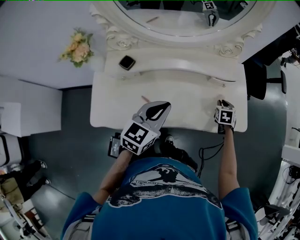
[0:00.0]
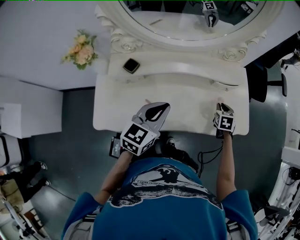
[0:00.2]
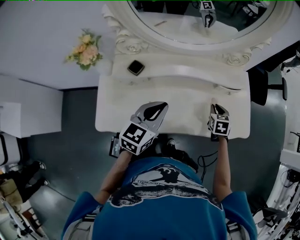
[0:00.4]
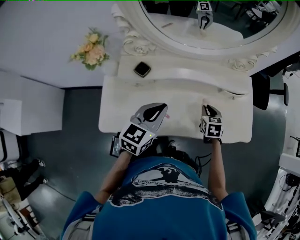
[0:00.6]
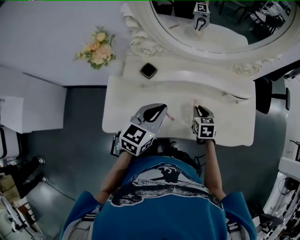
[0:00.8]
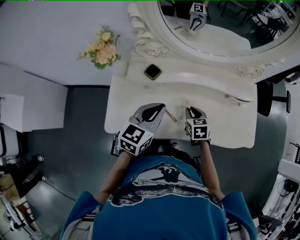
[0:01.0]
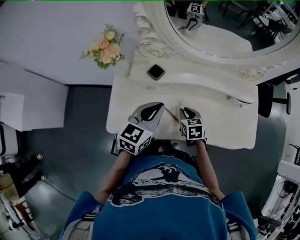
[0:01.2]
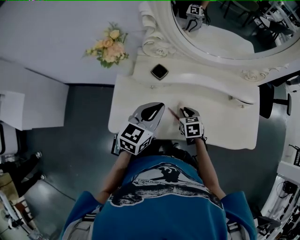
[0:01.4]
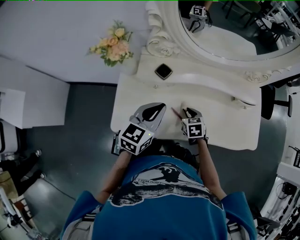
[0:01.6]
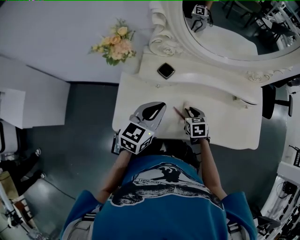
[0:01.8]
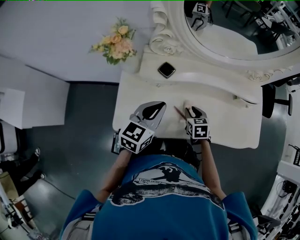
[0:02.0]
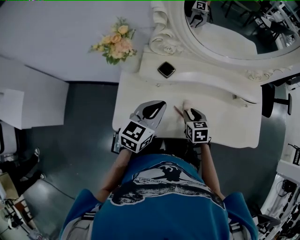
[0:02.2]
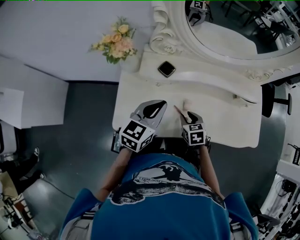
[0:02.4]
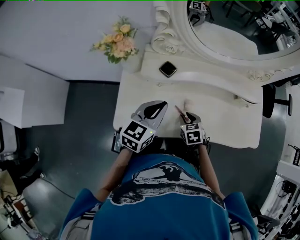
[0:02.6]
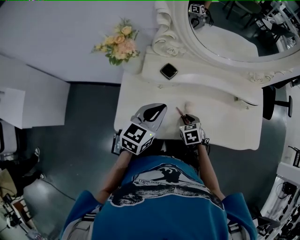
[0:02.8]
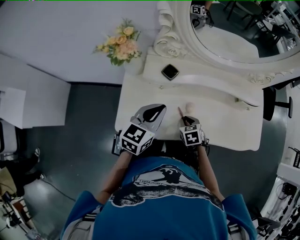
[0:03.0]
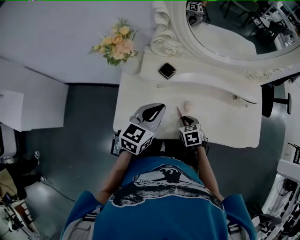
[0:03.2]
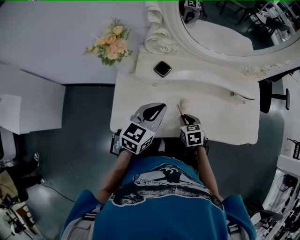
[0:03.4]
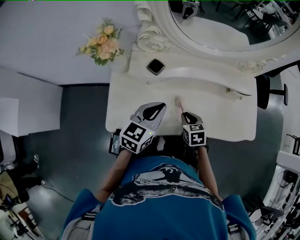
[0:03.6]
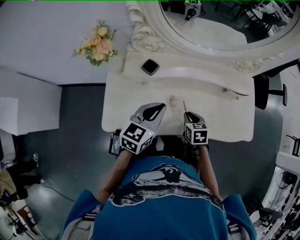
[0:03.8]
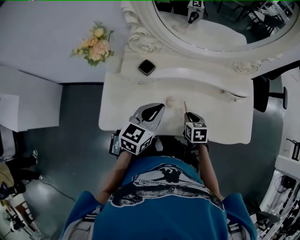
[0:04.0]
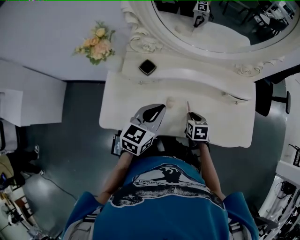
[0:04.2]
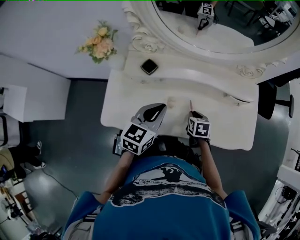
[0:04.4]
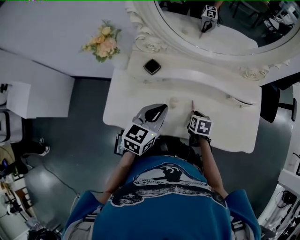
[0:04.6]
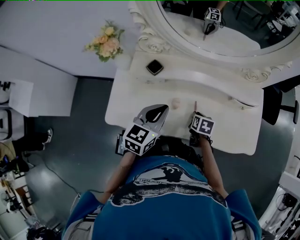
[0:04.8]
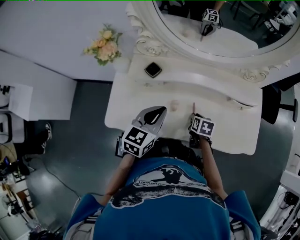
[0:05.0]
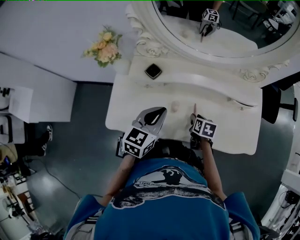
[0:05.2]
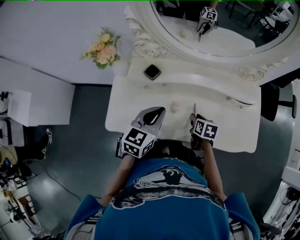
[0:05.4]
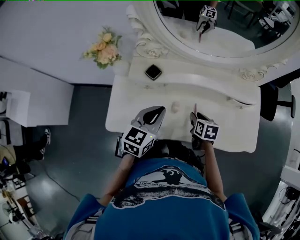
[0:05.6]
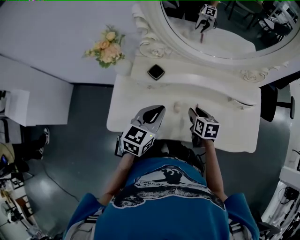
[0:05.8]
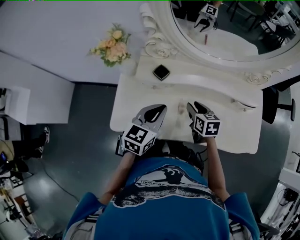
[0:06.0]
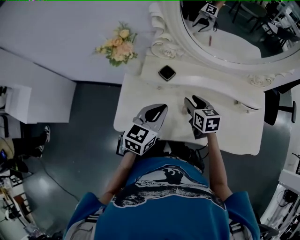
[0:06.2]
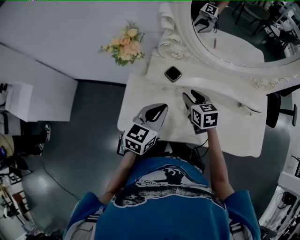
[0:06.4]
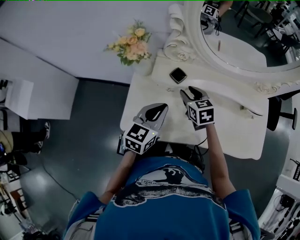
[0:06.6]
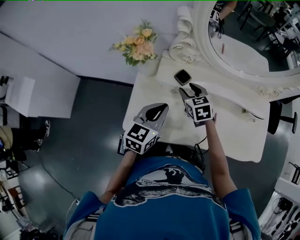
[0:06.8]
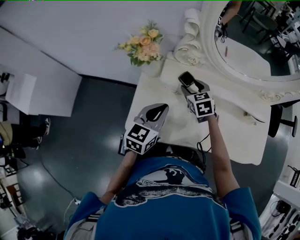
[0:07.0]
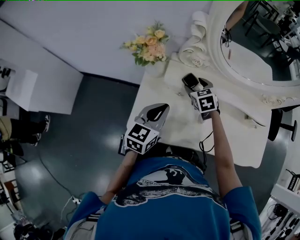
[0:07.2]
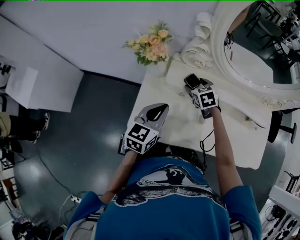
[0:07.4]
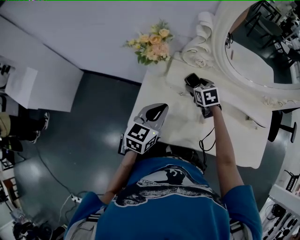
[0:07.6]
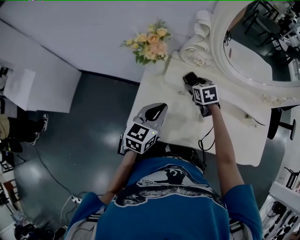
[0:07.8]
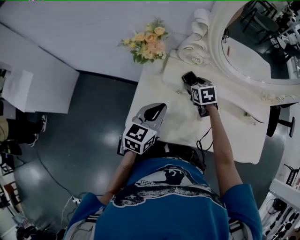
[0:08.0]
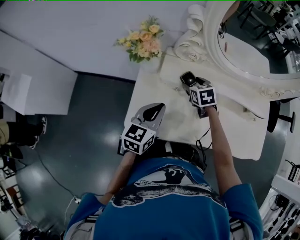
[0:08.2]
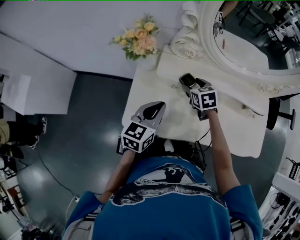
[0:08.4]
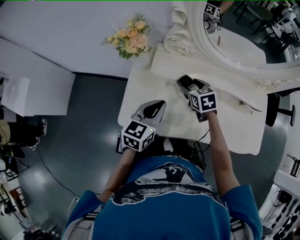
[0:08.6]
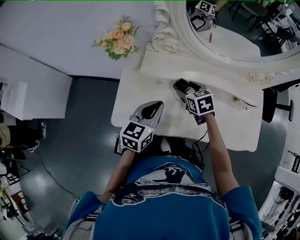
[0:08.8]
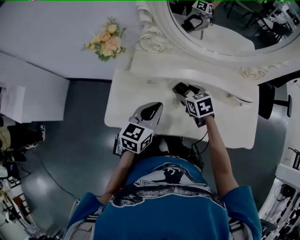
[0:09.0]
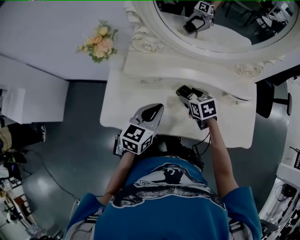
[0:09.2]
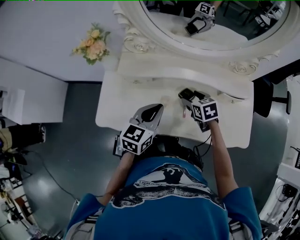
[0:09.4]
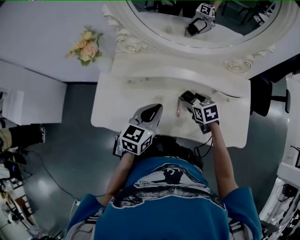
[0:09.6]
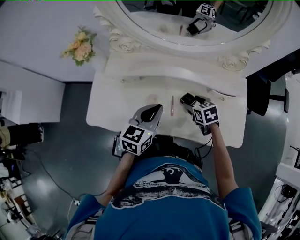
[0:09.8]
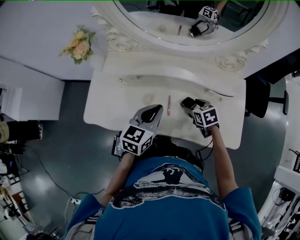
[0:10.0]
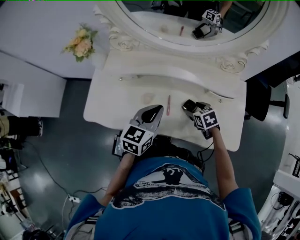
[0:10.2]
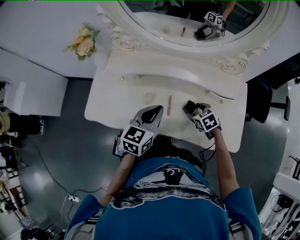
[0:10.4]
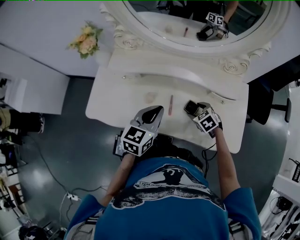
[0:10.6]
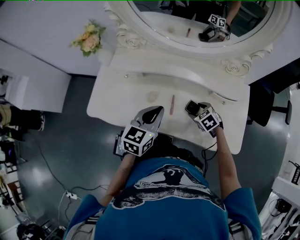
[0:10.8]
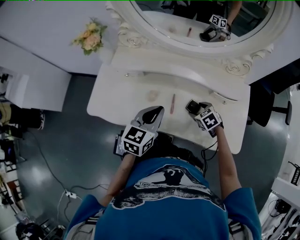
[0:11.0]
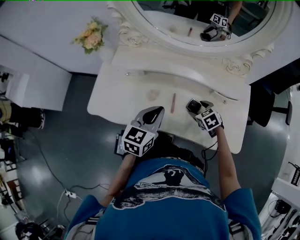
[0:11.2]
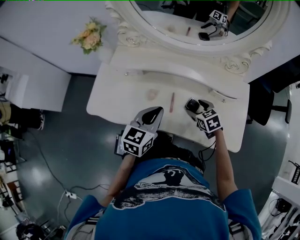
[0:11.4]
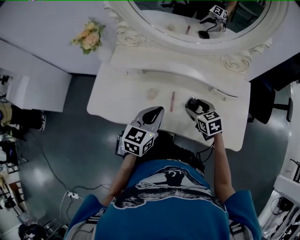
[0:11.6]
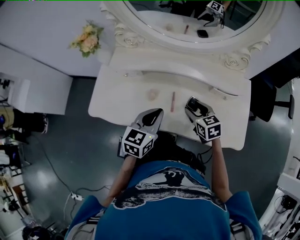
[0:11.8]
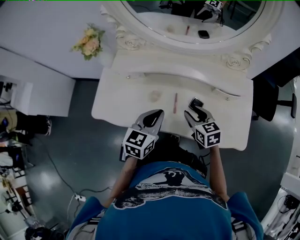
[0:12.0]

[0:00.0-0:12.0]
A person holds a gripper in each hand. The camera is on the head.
0:00.0 to 0:01.6: The left gripper heads to the left, covering about 20 cm. Meanwhile the right gripper goes roughly 35 cm to the left, and changes its angle by some 30 degrees.
0:01.6 to 0:03.0: The right gripper ends up roughly 5 cm from where it was.
0:03.0 to 0:04.4: Both grippers move to the right, roughly 10 cm. The right gripper turns by about 20 degrees.
0:04.4 to 0:06.0: The left gripper goes some 5 cm to the left. The right gripper is displaced to the left and upward by about 15 cm.
0:06.0 to 0:07.6: The left gripper travels to the left by approximately 15 cm; the right gripper shifts approximately 20 cm to the left and forward, rotates some 30 degrees, and opens up.
0:07.6 to 0:09.0: The left gripper travels to the right by about 15 cm, while the right gripper shifts about 15 cm to the right and backward.
0:09.0 to 0:10.4: The right gripper travels to the right, downward and backward by about 25 cm. The left gripper heads to the right, covering approximately 15 cm.
0:10.4 to 0:12.0: The right gripper moves upward and to the left, approximately 10 cm, turns by roughly 30 degrees, and closes its fingers.

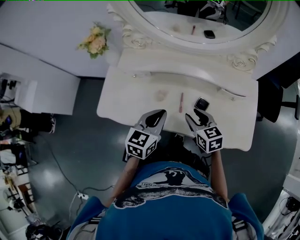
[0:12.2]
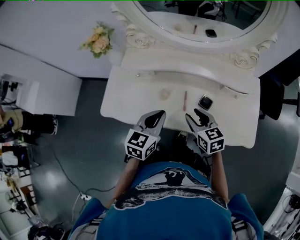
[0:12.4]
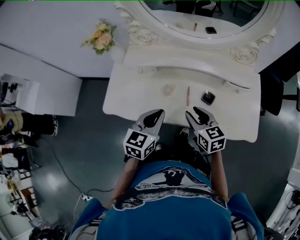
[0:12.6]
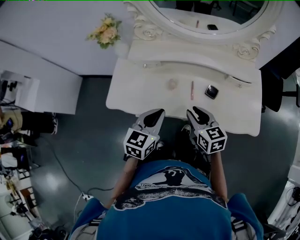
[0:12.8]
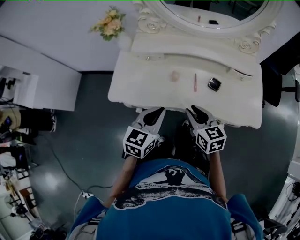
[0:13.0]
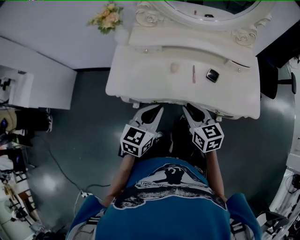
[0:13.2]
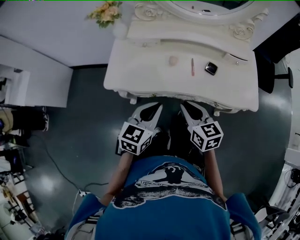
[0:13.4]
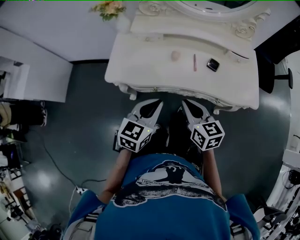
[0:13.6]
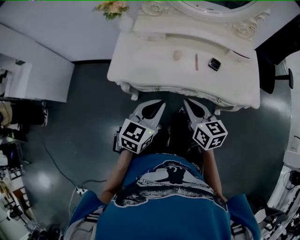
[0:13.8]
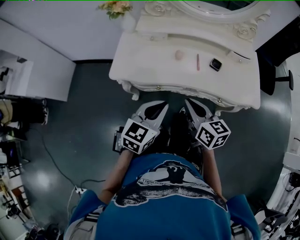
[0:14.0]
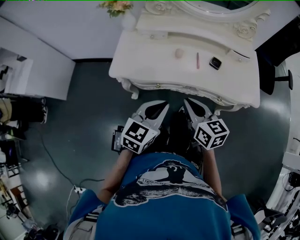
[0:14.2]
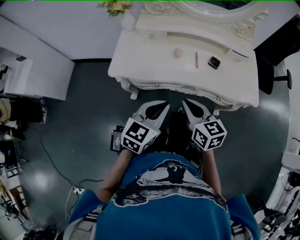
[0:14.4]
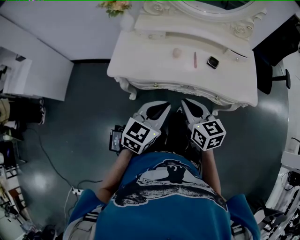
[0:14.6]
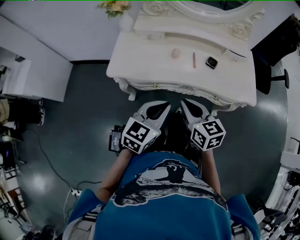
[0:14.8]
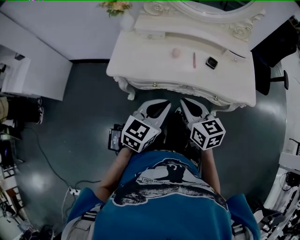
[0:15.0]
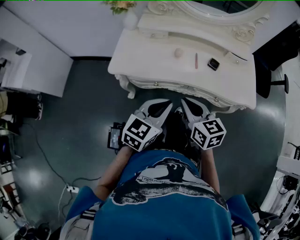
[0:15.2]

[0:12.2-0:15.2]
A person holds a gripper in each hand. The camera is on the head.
0:12.2 to 0:13.8: Both grippers move backward and to the left, about 25 cm. The right gripper closes its fingers.
0:13.8 to 0:15.2: The grippers move only a little.

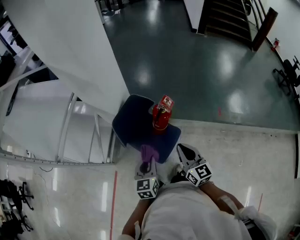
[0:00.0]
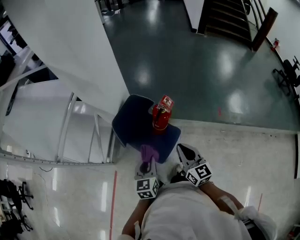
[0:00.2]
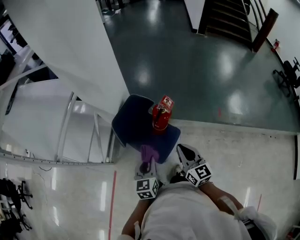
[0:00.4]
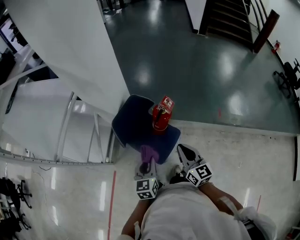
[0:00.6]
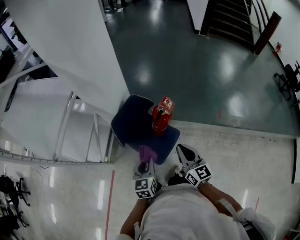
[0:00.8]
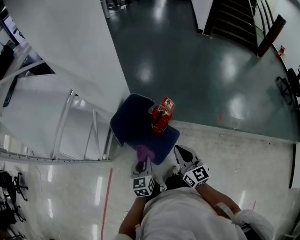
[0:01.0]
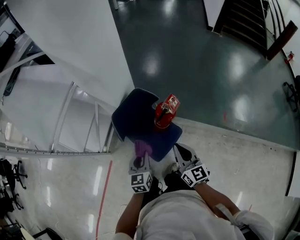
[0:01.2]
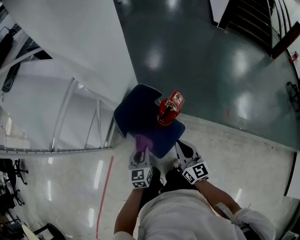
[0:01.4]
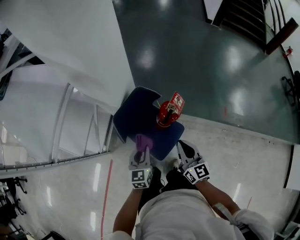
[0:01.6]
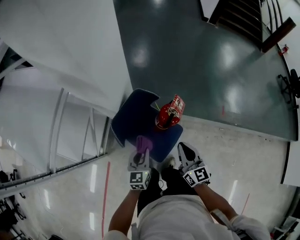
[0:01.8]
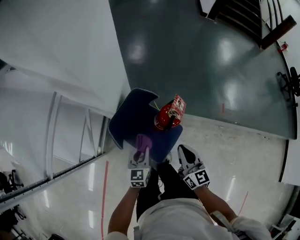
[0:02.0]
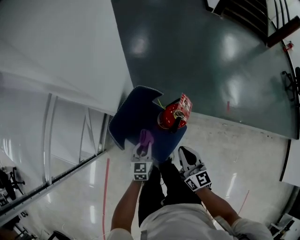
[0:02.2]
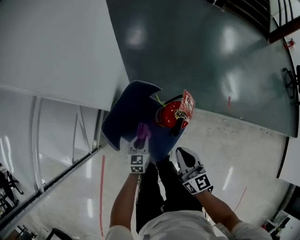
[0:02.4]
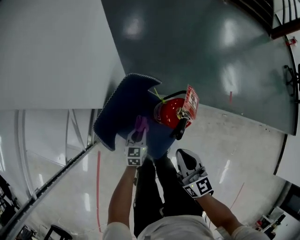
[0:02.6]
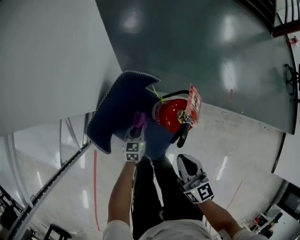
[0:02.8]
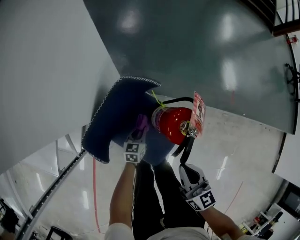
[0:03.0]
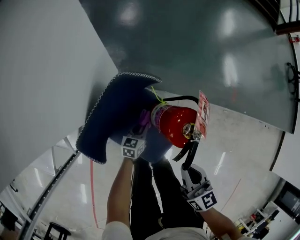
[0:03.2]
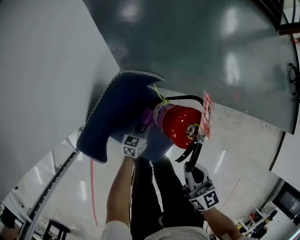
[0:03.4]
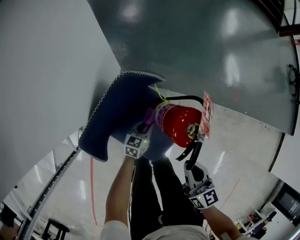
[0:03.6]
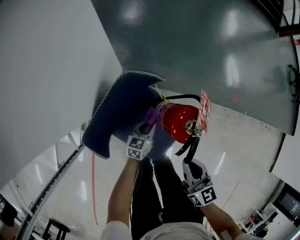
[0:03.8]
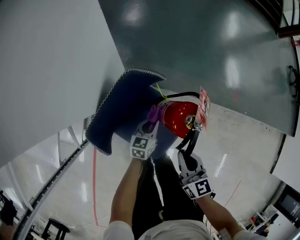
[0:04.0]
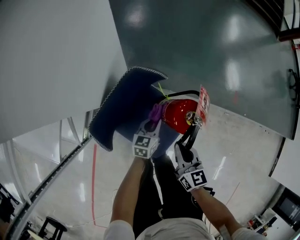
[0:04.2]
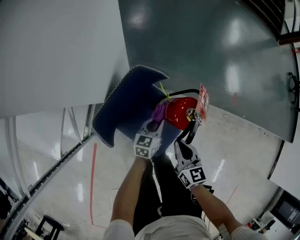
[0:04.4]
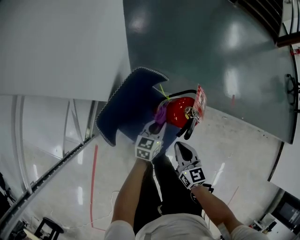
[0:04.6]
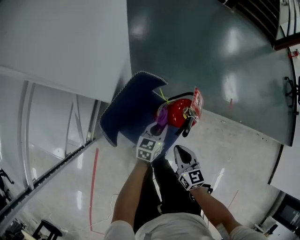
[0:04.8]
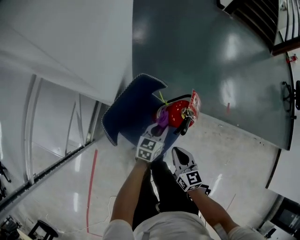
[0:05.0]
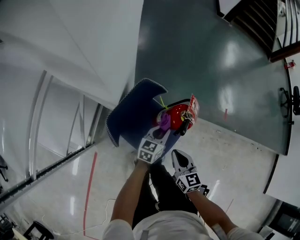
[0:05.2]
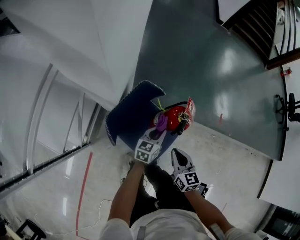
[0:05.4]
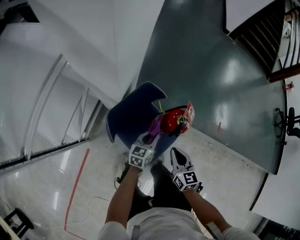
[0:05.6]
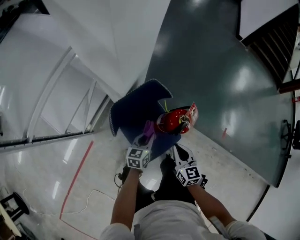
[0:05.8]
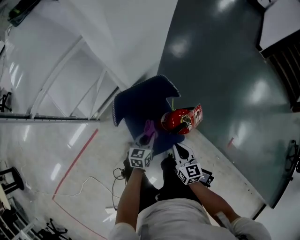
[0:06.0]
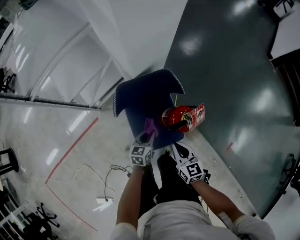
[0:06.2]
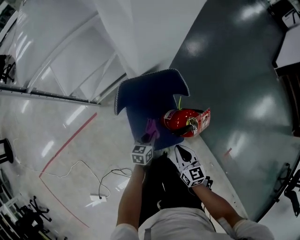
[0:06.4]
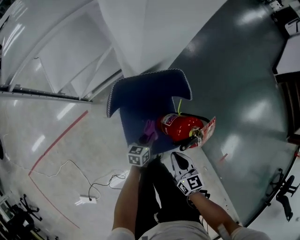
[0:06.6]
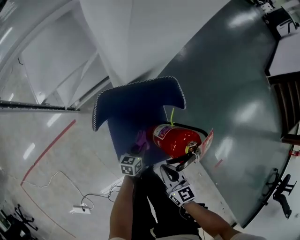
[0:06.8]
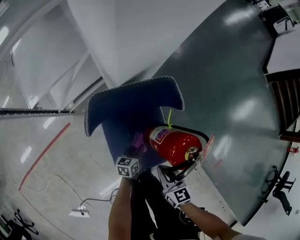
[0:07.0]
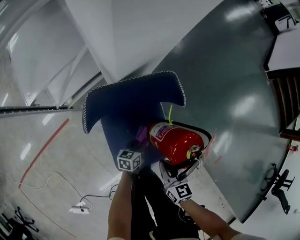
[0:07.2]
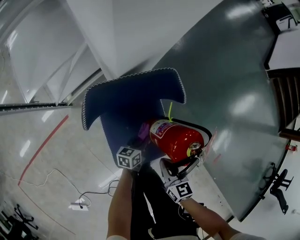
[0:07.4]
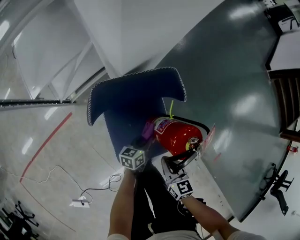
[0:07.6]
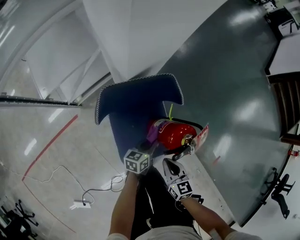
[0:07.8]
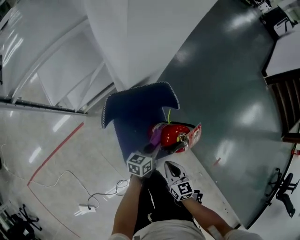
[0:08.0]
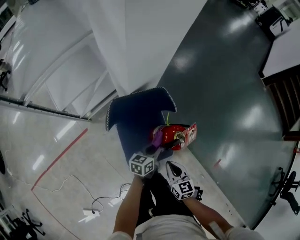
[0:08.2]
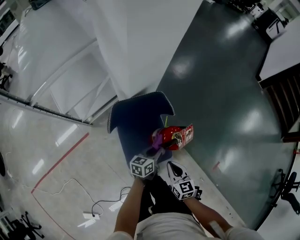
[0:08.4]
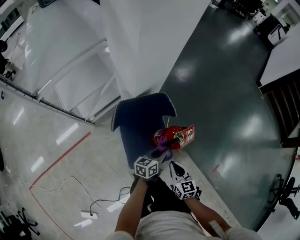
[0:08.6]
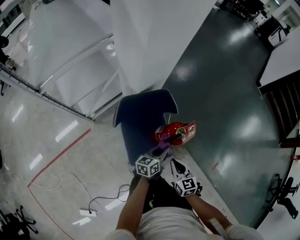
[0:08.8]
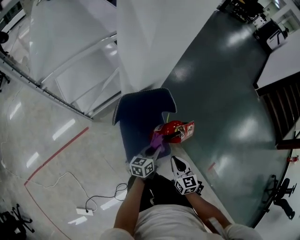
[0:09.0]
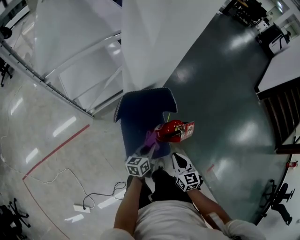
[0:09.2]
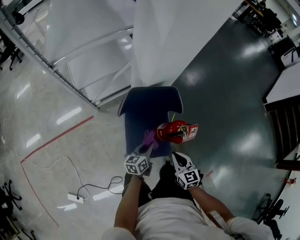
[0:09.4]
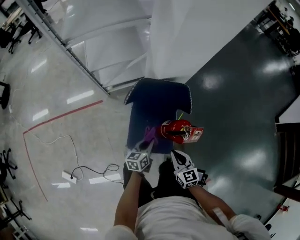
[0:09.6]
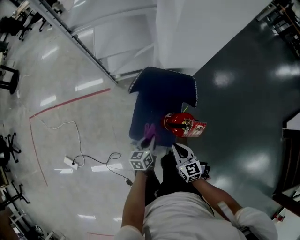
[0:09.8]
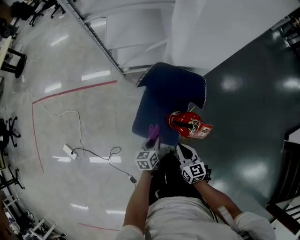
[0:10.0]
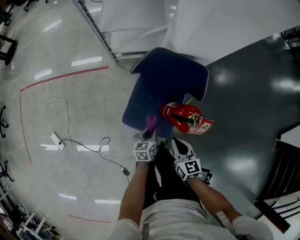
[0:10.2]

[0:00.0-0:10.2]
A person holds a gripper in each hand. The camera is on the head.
0:00.0 to 0:01.4: The left gripper goes about 10 cm forward and downward; the right gripper travels forward by about 5 cm.
0:01.4 to 0:03.0: The left gripper travels downward and forward by some 40 cm, and turns by approximately 30 degrees; the right gripper heads downward, covering roughly 20 cm.
0:03.0 to 0:04.4: The left gripper goes approximately 10 cm upward. The right gripper changes place by some 5 cm.
0:04.4 to 0:05.8: The left gripper heads upward and backward, covering approximately 15 cm, and turns by some 20 degrees. Meanwhile the right gripper heads upward, covering about 10 cm.
0:05.8 to 0:07.2: The grippers both shift downward by approximately 20 cm. The left gripper changes its angle by about 20 degrees, while the right gripper turns by about 20 degrees.
0:07.2 to 0:08.8: The left gripper is displaced upward by approximately 30 cm. The right gripper goes approximately 15 cm upward.
0:08.8 to 0:10.2: The left gripper shifts some 15 cm downward, and swivels about 50 degrees. Meanwhile the right gripper ends up about 5 cm from where it was, and rotates roughly 30 degrees.
